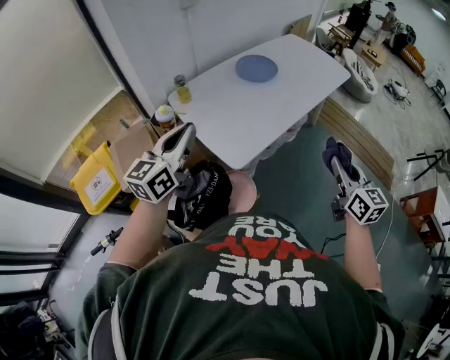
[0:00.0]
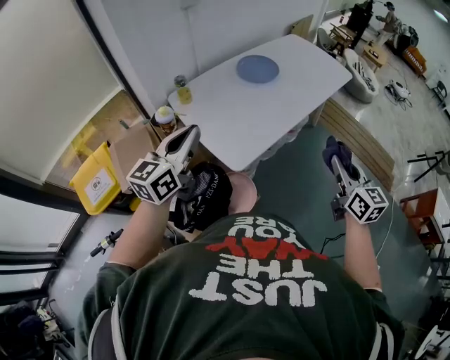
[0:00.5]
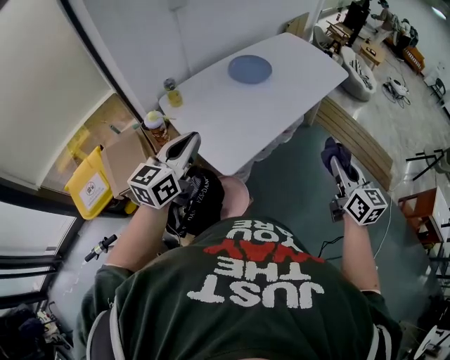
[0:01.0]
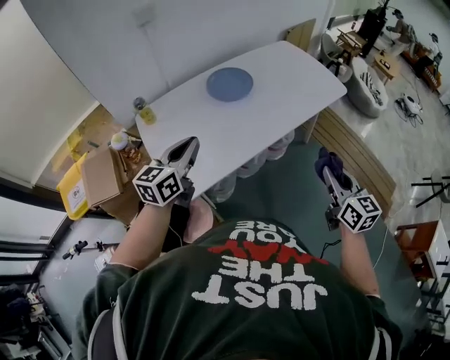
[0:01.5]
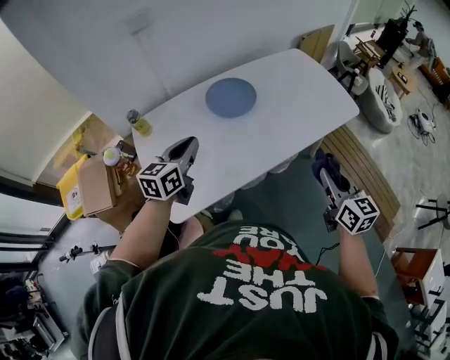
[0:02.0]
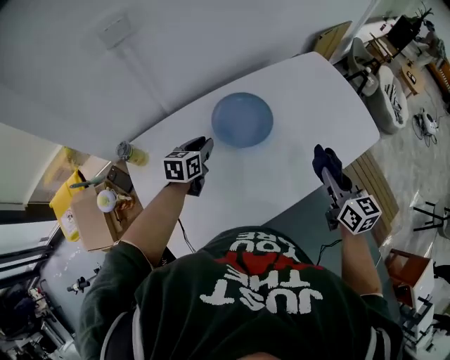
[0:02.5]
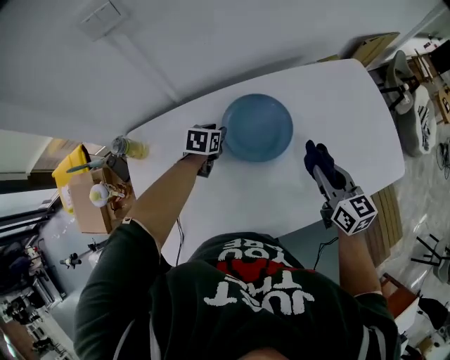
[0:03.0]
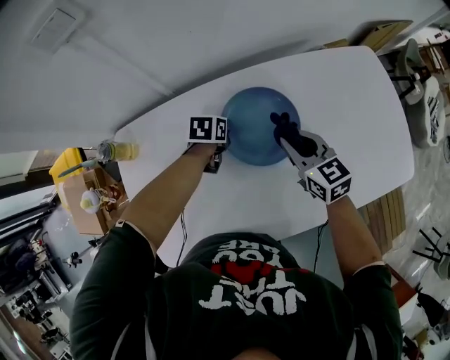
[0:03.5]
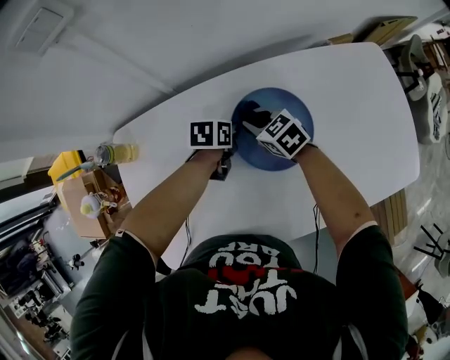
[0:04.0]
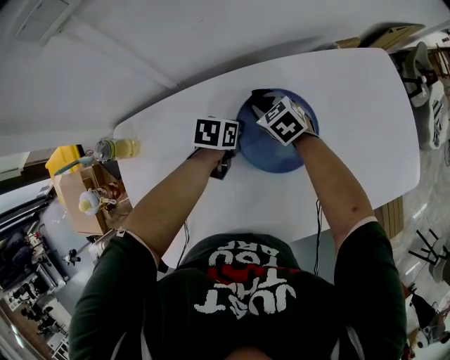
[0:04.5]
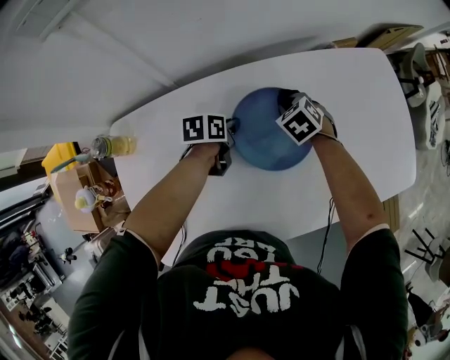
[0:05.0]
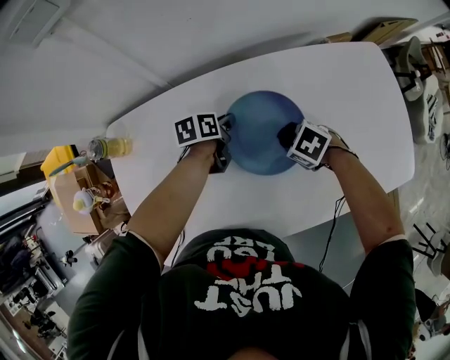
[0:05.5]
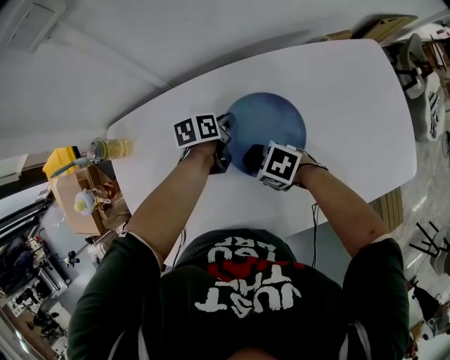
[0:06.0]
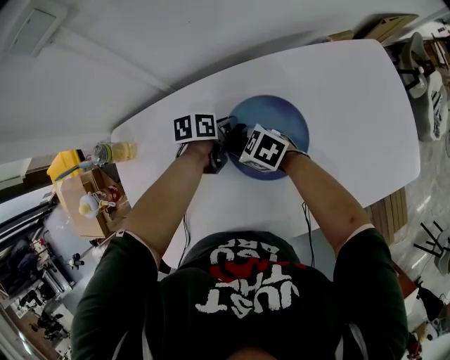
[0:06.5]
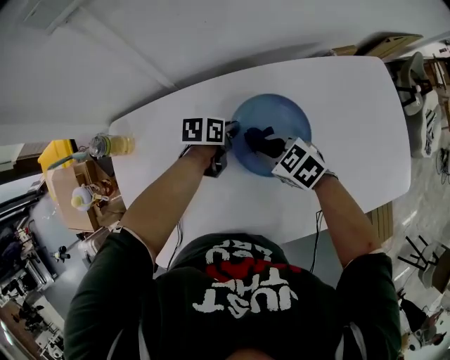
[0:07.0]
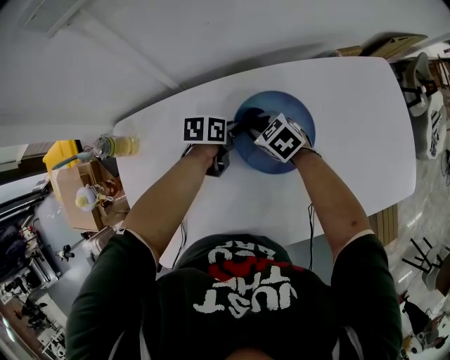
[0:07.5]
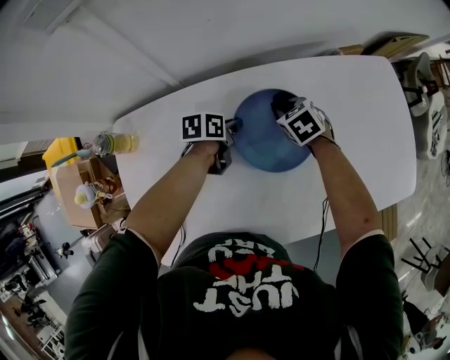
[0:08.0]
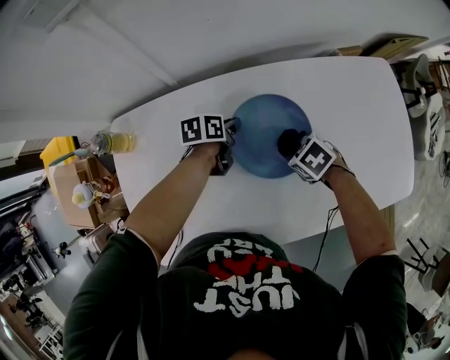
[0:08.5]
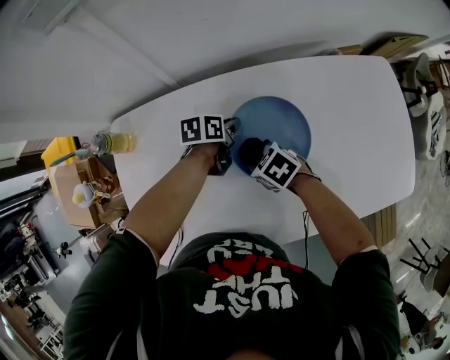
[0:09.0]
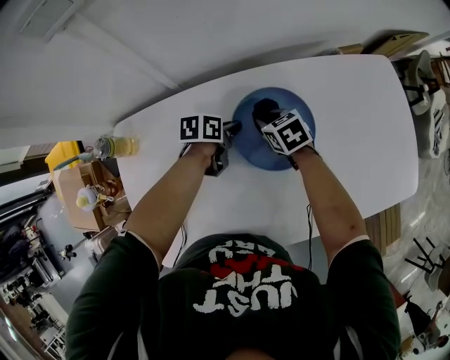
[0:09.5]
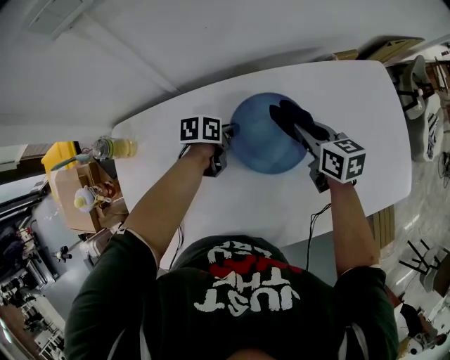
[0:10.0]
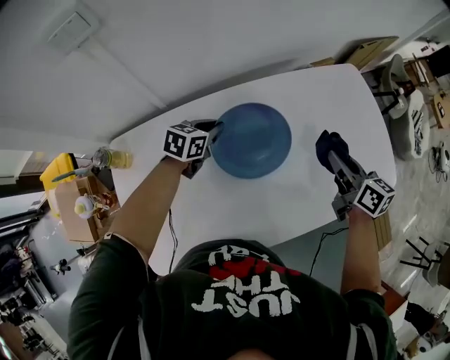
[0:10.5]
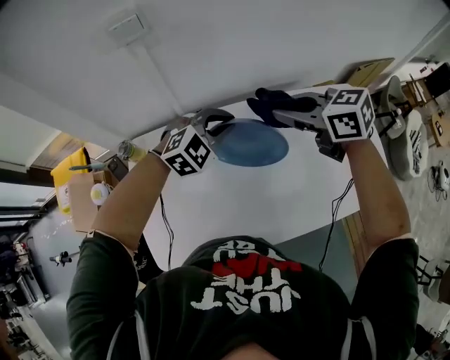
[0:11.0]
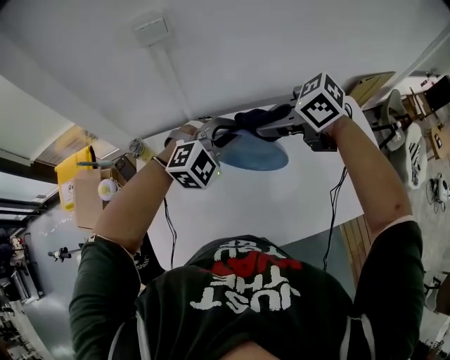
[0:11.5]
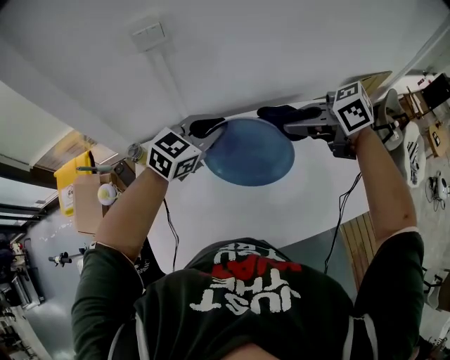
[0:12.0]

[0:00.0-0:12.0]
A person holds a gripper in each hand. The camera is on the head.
0:00.0 to 0:02.0: Both grippers travel together forward and to the right, about 35 cm. The left gripper swivels some 20 degrees.
0:02.0 to 0:04.0: The left gripper heads forward and downward, covering roughly 50 cm, tips its fingers downward by roughly 40 degrees, and opens and closes again. Meanwhile the right gripper goes approximately 60 cm forward, to the left and downward, and swivels some 60 degrees.
0:04.0 to 0:06.0: The right gripper ends up roughly 15 cm from where it was, and turns by about 40 degrees.
0:06.0 to 0:08.0: The right gripper moves some 20 cm, and swivels some 40 degrees.
0:08.0 to 0:10.0: The right gripper travels upward by some 10 cm, and turns by some 40 degrees.
0:10.0 to 0:12.0: The two grippers go roughly 30 cm upward. The right gripper swivels approximately 50 degrees. Meanwhile the left gripper twists some 60 degrees clockwise, seen from behind.

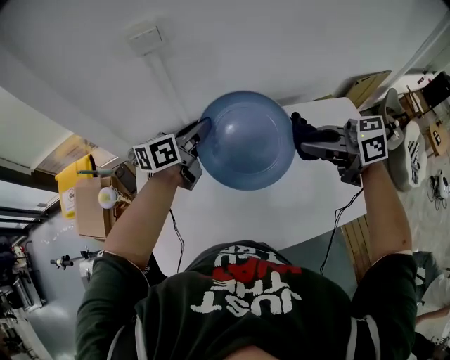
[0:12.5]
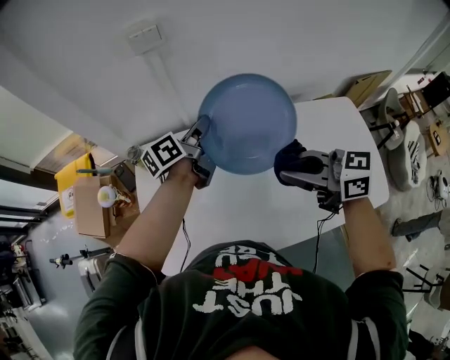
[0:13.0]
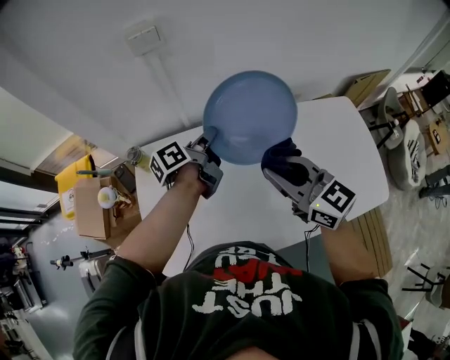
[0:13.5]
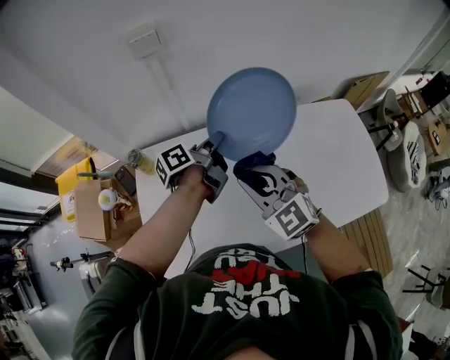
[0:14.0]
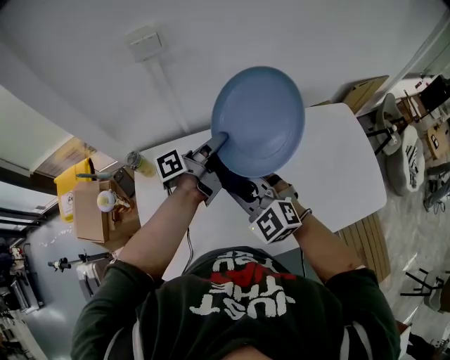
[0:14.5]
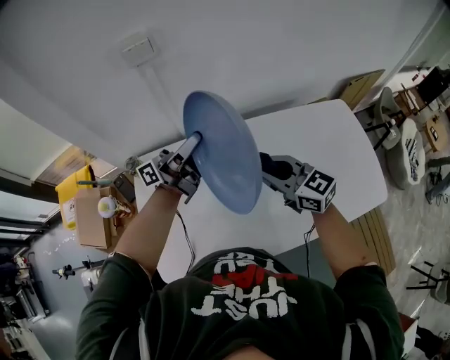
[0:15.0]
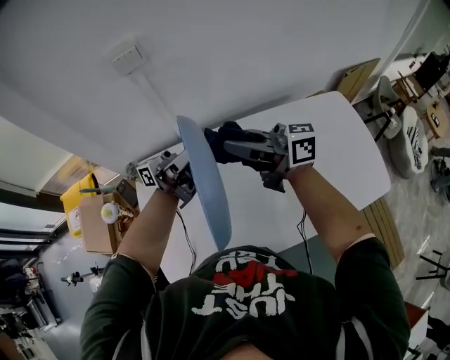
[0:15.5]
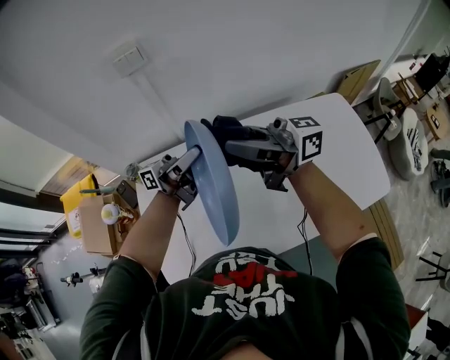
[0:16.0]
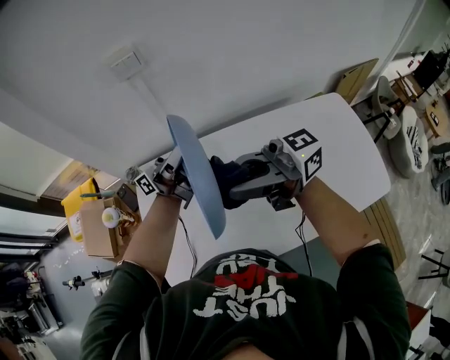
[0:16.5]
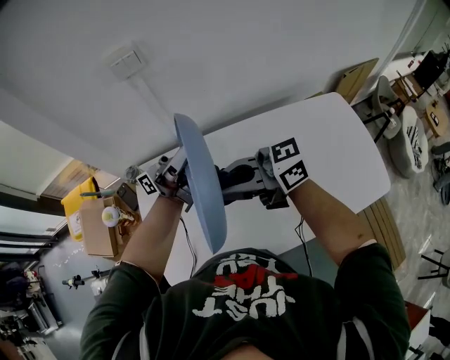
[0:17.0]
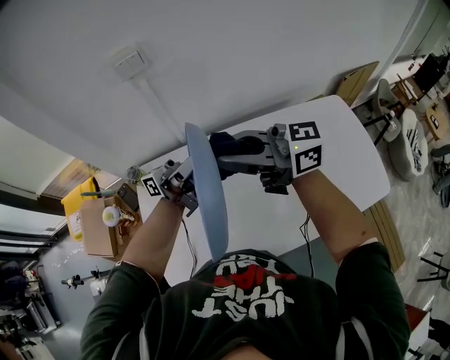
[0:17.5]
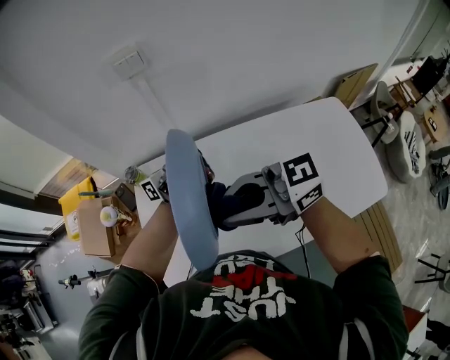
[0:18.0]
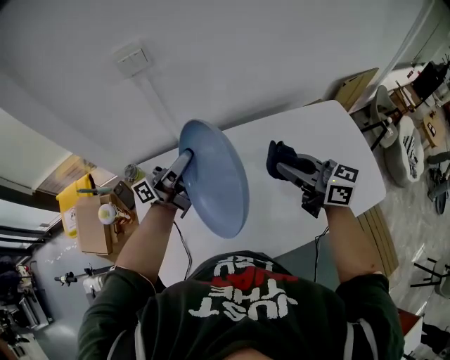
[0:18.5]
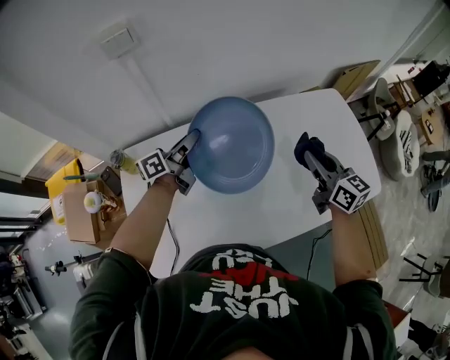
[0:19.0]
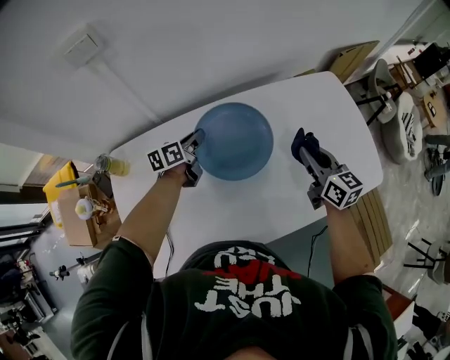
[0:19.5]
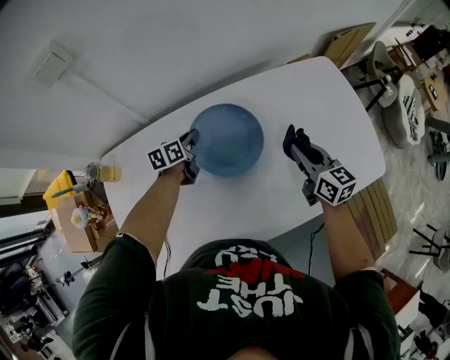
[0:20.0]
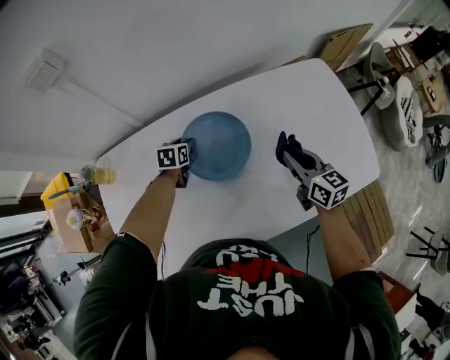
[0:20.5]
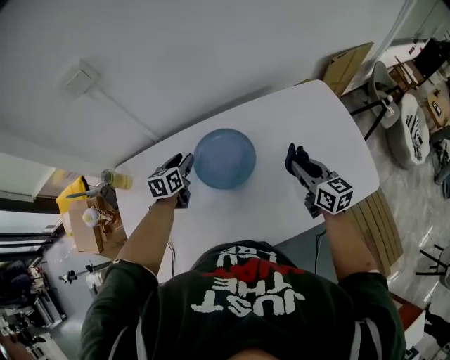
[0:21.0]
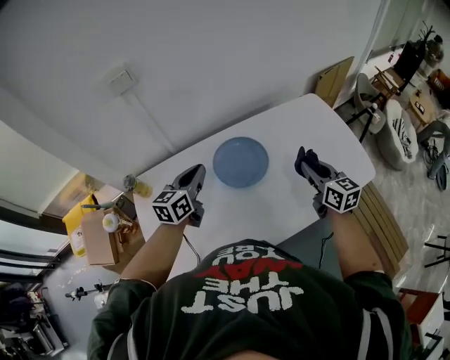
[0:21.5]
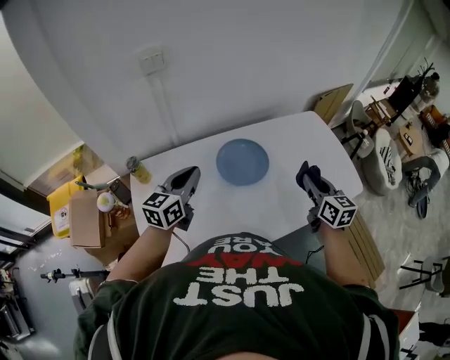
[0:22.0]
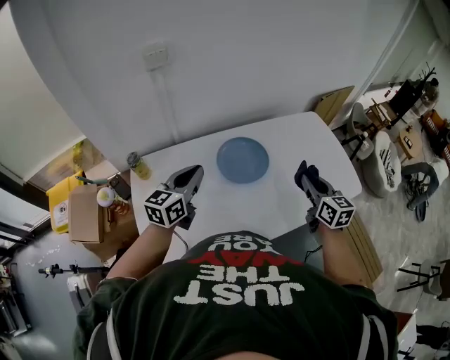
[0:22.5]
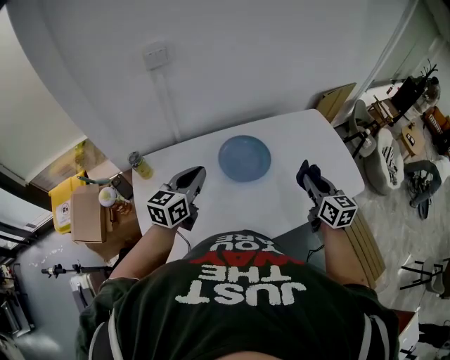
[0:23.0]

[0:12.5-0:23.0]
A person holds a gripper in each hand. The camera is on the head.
0:12.5 to 0:14.5: The left gripper ends up roughly 5 cm from where it was, and rolls counterclockwise, seen from behind, by some 40 degrees. The right gripper is displaced to the left and downward by approximately 20 cm, and rolls counterclockwise, seen from behind, by some 60 degrees.
0:14.5 to 0:16.5: The right gripper shifts roughly 20 cm upward, and tips its fingers upward by about 50 degrees, while the left gripper shifts approximately 10 cm upward, and tips its fingers upward by approximately 40 degrees.
0:16.5 to 0:19.0: The right gripper goes up and down, about 20 cm each way, reversing 2 times, and tilts its fingers about 30 degrees downward. Meanwhile the left gripper travels downward by roughly 15 cm, and tilts its fingers about 40 degrees downward.
0:19.0 to 0:21.0: The right gripper is displaced to the right and downward by about 10 cm. Meanwhile the left gripper travels downward by some 10 cm, tilts its fingers roughly 40 degrees downward, and opens up.
0:21.0 to 0:23.0: The right gripper heads backward, upward and to the left, covering roughly 20 cm, while the left gripper moves upward and backward, some 25 cm, rotates about 30 degrees, and closes.

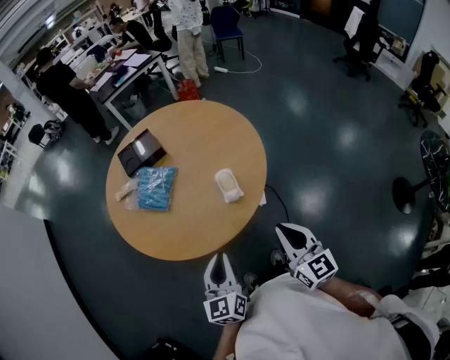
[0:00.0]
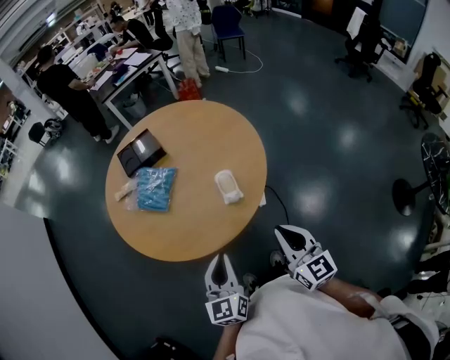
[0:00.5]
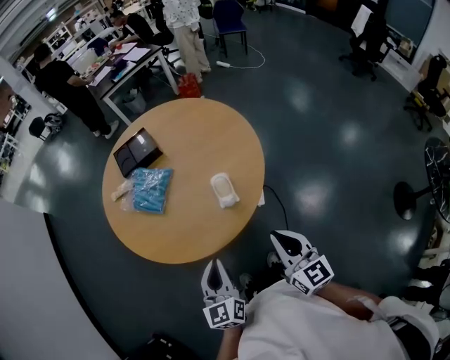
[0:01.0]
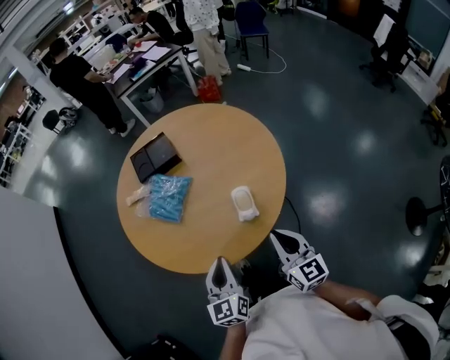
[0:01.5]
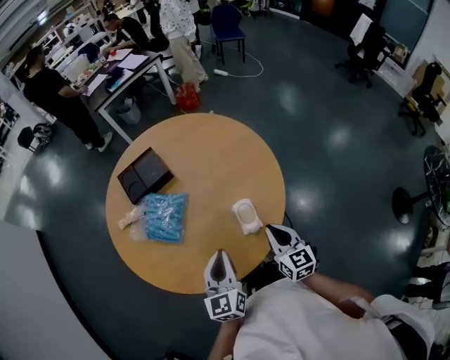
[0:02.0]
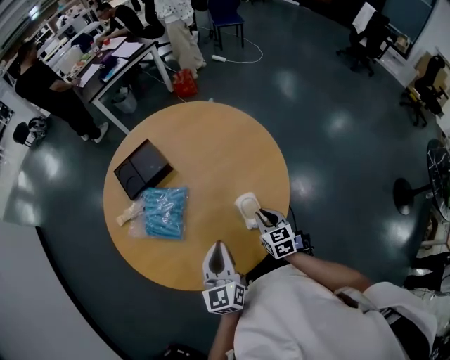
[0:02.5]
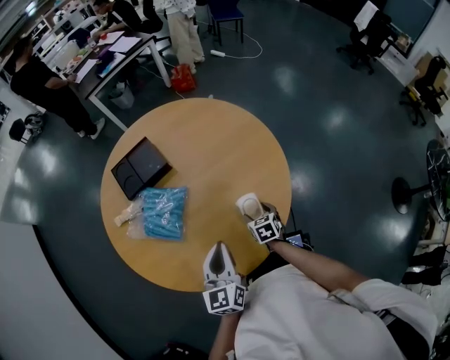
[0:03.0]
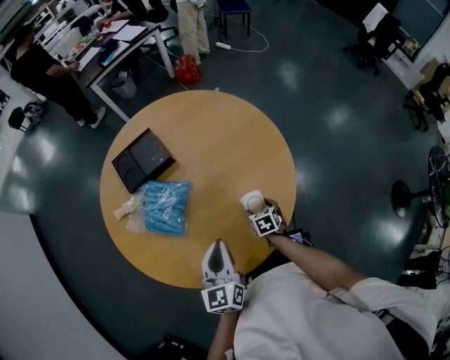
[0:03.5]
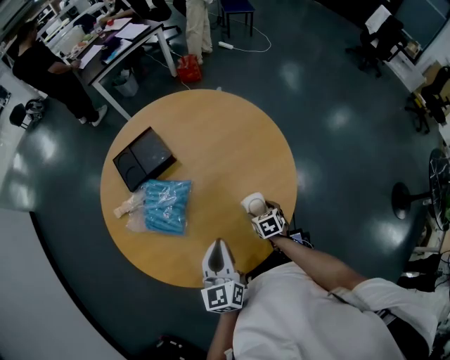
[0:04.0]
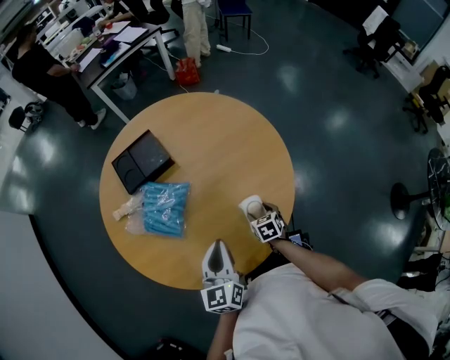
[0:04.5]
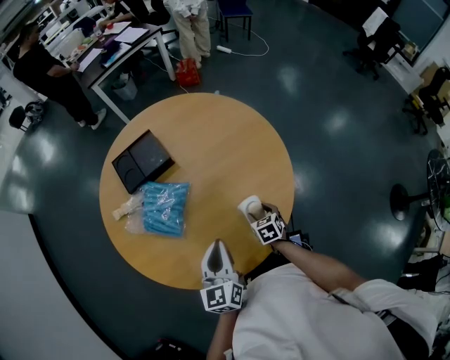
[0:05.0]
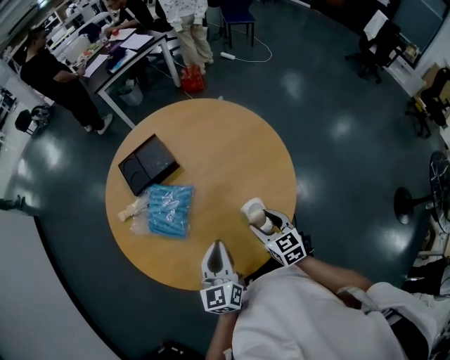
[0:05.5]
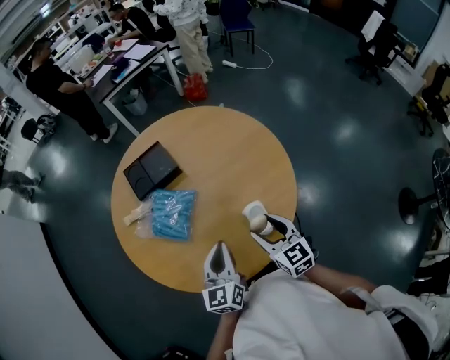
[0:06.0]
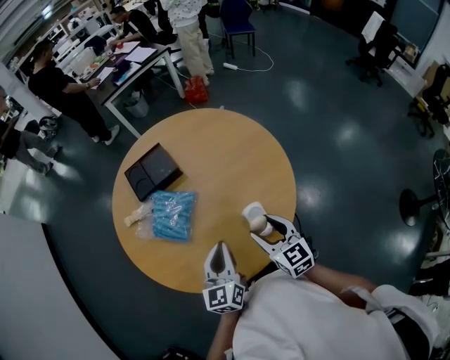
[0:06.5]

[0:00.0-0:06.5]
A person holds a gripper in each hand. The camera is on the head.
0:00.0 to 0:02.0: The right gripper shifts about 20 cm forward and downward; the left gripper moves forward, approximately 20 cm.
0:02.0 to 0:04.5: The right gripper goes about 25 cm downward and forward, tilts its fingers roughly 40 degrees downward, and opens up; the left gripper is displaced forward by about 5 cm.
0:04.5 to 0:06.5: The right gripper travels upward by roughly 25 cm, and points its fingers roughly 40 degrees further upward.
